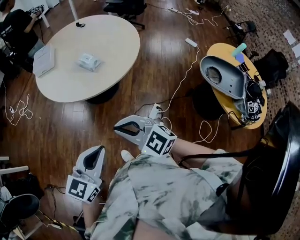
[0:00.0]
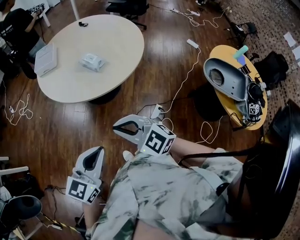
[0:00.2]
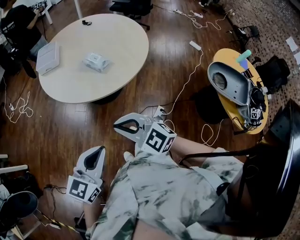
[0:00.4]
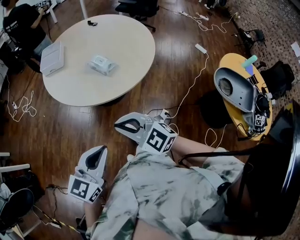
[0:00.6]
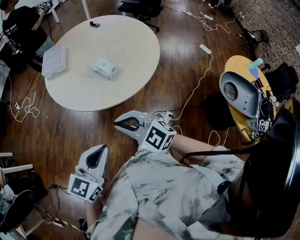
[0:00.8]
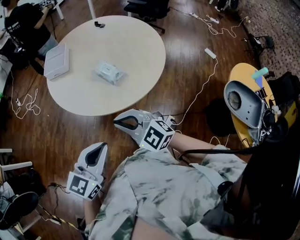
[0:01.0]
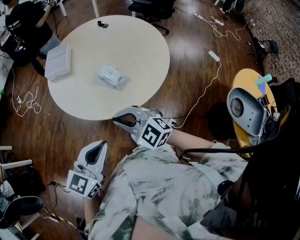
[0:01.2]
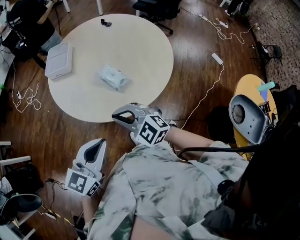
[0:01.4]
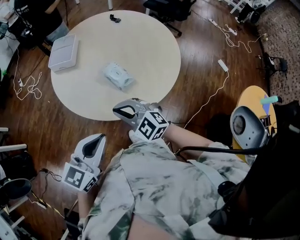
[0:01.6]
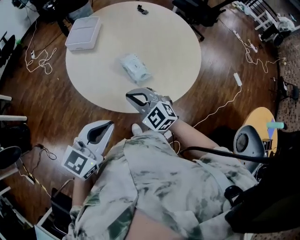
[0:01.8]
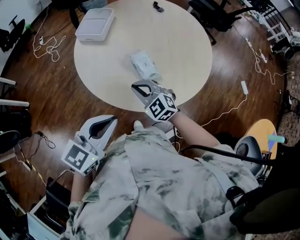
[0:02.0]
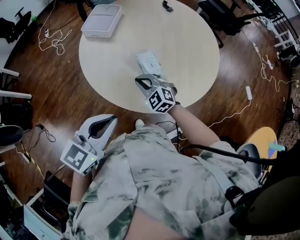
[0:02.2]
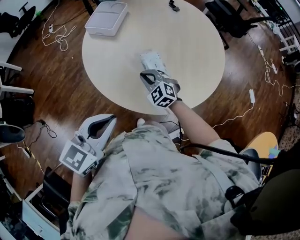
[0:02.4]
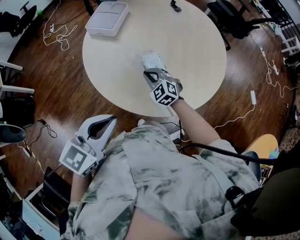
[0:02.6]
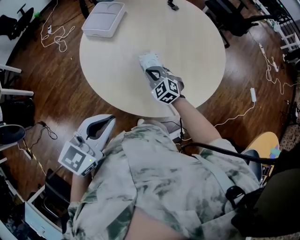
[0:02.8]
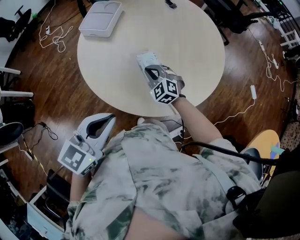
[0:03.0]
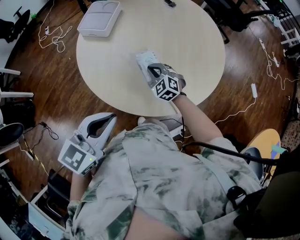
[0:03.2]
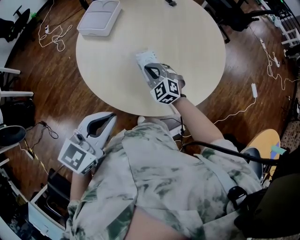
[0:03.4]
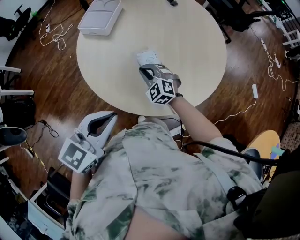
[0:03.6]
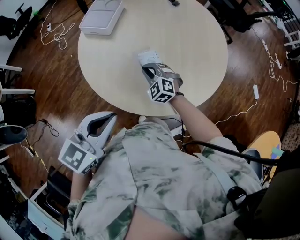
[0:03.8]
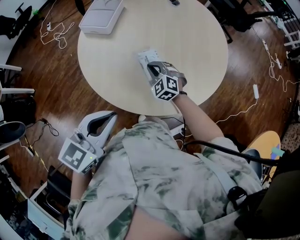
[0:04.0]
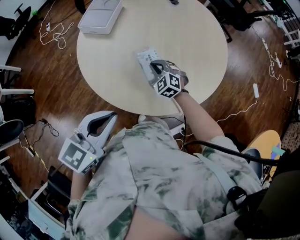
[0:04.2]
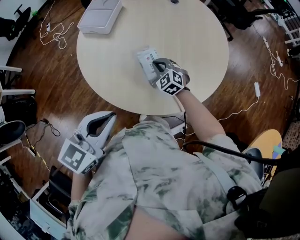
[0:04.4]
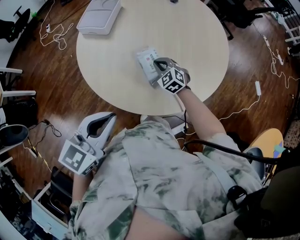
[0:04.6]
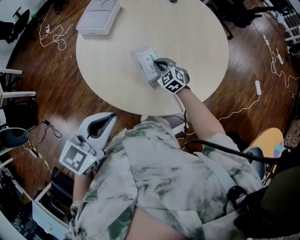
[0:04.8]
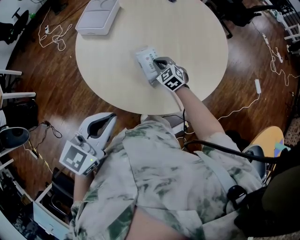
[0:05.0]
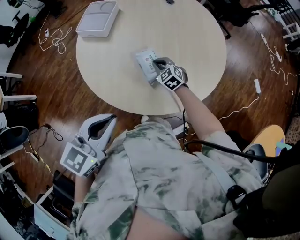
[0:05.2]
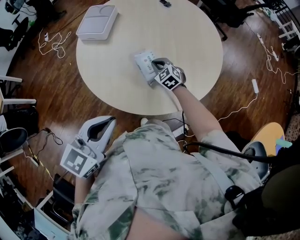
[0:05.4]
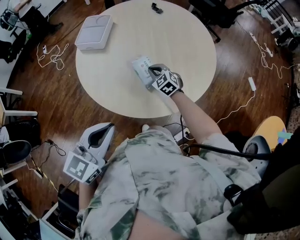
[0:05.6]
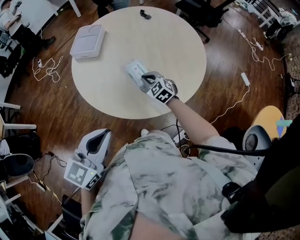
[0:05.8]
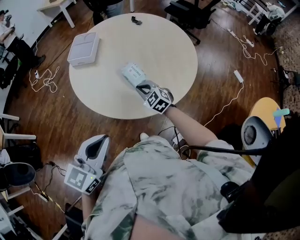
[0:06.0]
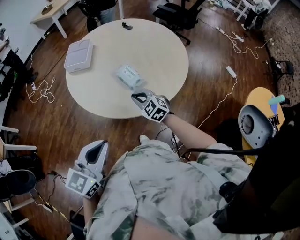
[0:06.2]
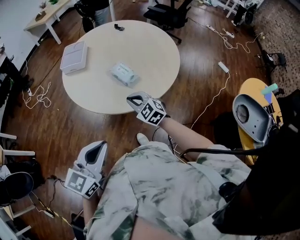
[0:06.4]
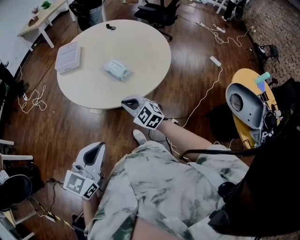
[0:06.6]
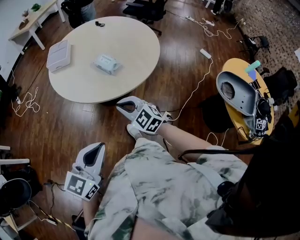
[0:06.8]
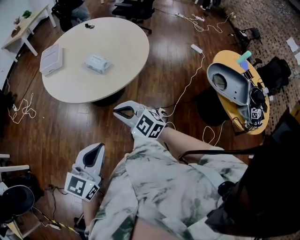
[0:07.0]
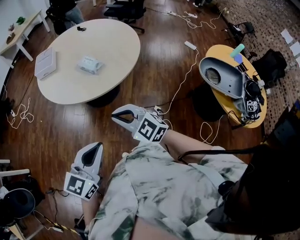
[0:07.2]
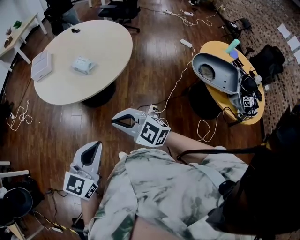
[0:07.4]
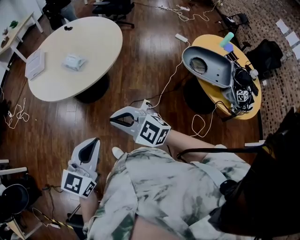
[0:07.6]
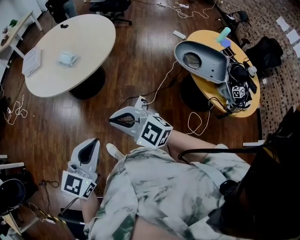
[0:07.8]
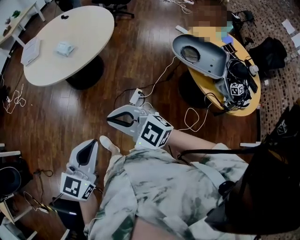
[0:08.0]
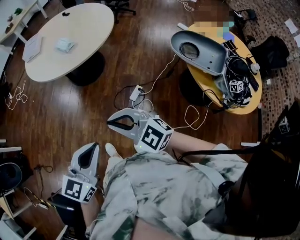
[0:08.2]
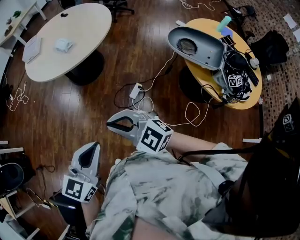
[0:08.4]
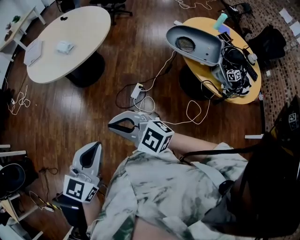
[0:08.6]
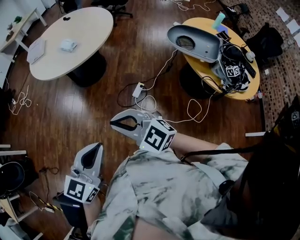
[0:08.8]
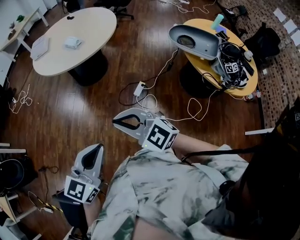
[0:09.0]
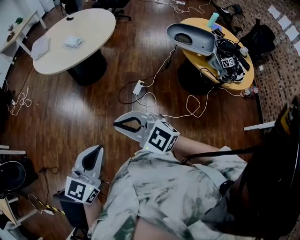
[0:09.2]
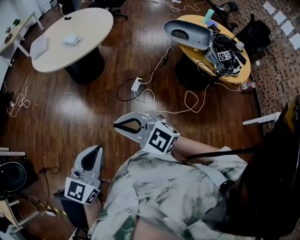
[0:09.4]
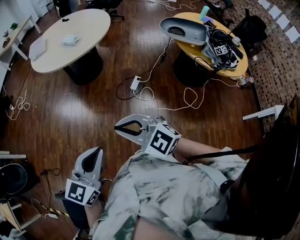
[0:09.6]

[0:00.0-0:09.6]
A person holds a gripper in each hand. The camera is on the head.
0:00.0 to 0:01.6: Both grippers move forward, some 30 cm.
0:01.6 to 0:03.2: The right gripper travels forward and downward by approximately 30 cm; the left gripper is displaced forward by about 10 cm.
0:03.2 to 0:04.8: There are only small adjustments of the grippers.
0:04.8 to 0:06.4: The right gripper travels backward and upward by approximately 30 cm; the left gripper heads backward, covering about 20 cm.
0:06.4 to 0:08.0: The two grippers go about 40 cm backward and to the right.
0:08.0 to 0:09.6: The two grippers go about 30 cm backward and to the left.

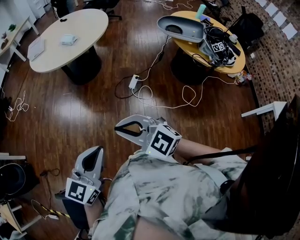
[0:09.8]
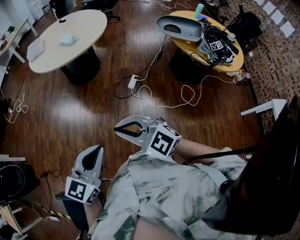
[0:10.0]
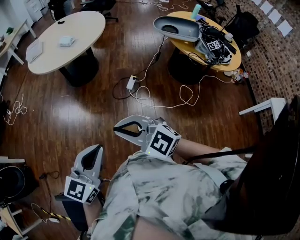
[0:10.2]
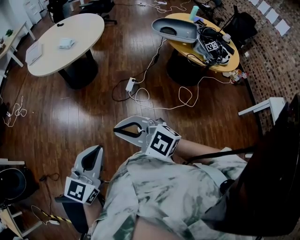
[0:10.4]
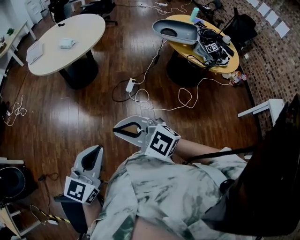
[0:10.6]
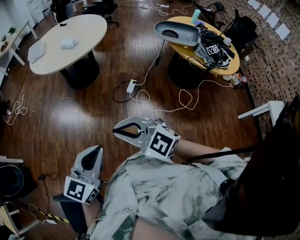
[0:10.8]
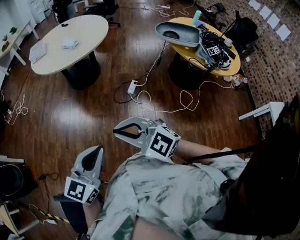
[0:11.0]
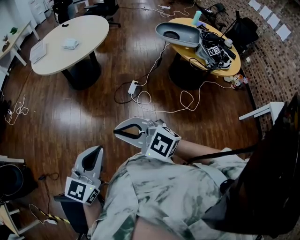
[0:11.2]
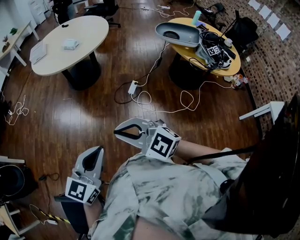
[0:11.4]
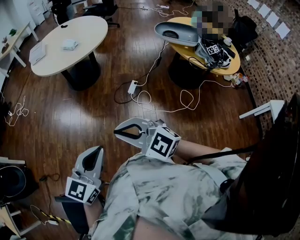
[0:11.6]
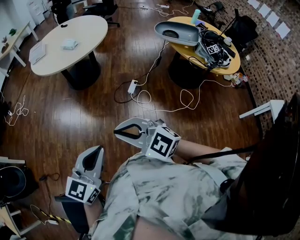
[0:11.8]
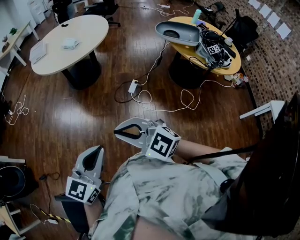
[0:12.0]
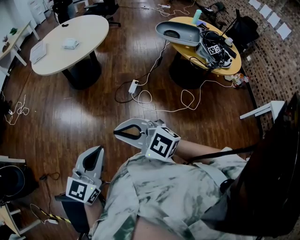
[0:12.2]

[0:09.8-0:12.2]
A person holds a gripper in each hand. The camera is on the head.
0:09.8 to 0:11.0: The grippers move only a little.
0:11.0 to 0:12.2: Both grippers stay put.

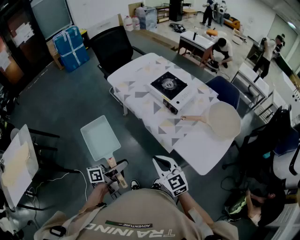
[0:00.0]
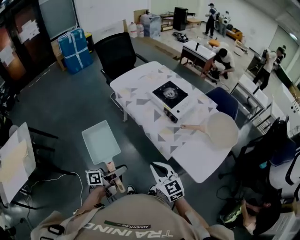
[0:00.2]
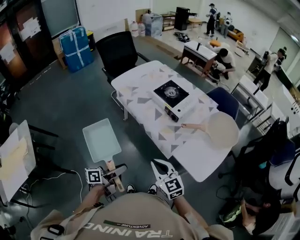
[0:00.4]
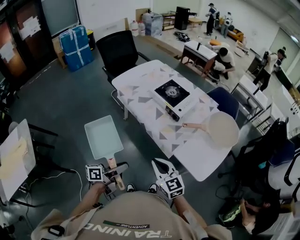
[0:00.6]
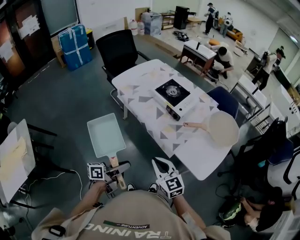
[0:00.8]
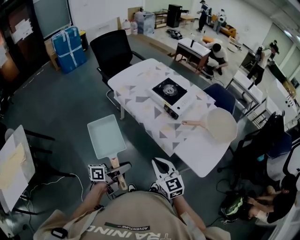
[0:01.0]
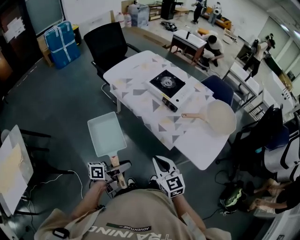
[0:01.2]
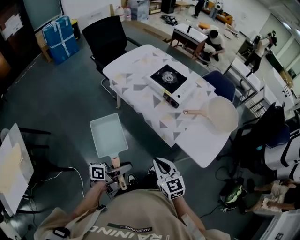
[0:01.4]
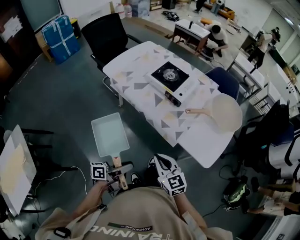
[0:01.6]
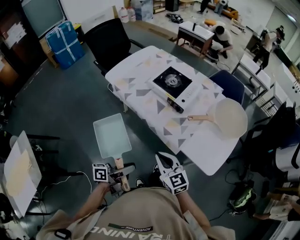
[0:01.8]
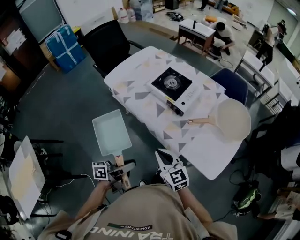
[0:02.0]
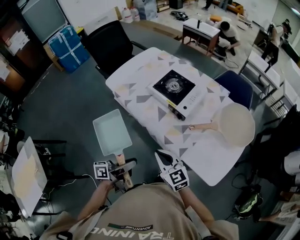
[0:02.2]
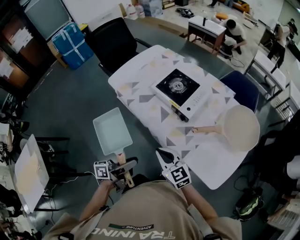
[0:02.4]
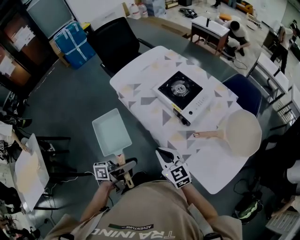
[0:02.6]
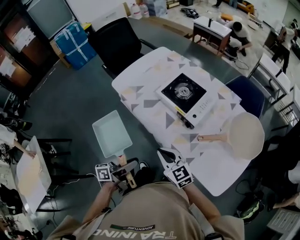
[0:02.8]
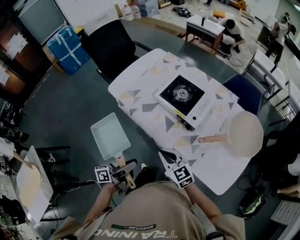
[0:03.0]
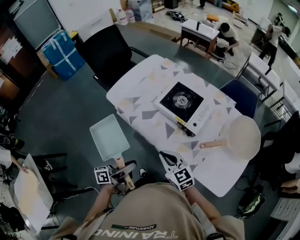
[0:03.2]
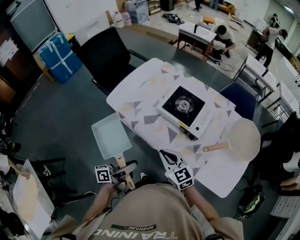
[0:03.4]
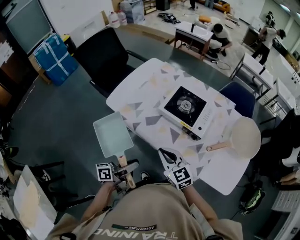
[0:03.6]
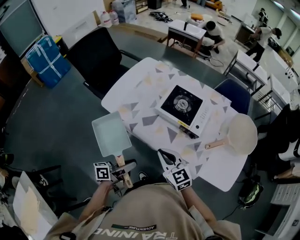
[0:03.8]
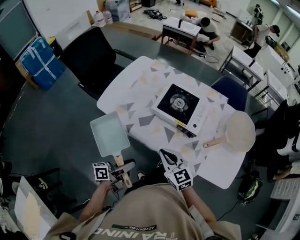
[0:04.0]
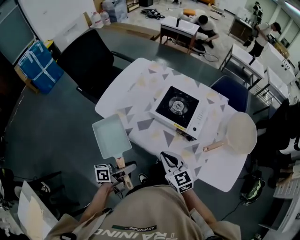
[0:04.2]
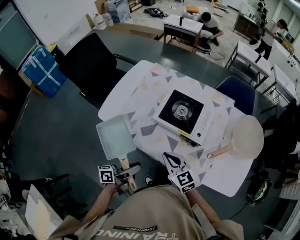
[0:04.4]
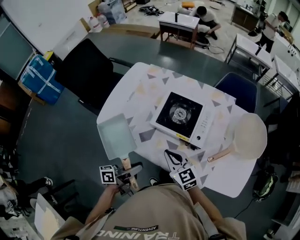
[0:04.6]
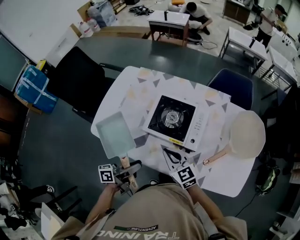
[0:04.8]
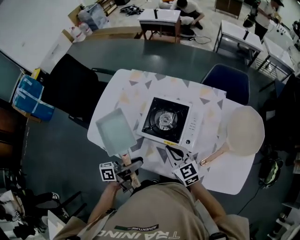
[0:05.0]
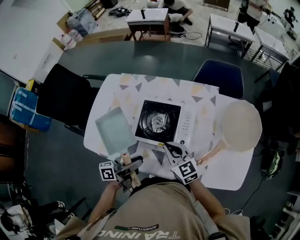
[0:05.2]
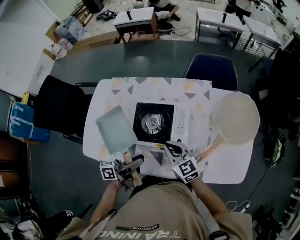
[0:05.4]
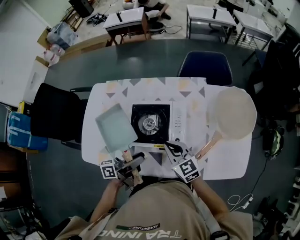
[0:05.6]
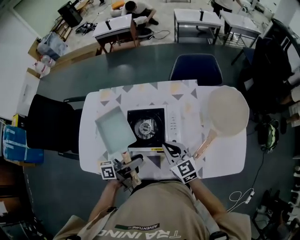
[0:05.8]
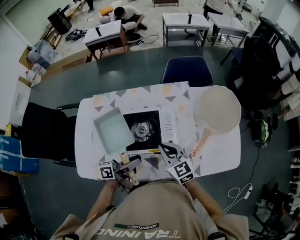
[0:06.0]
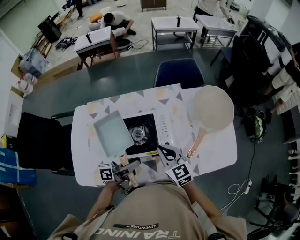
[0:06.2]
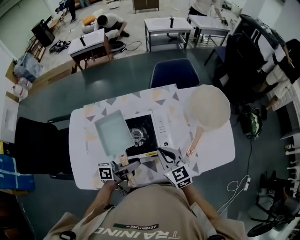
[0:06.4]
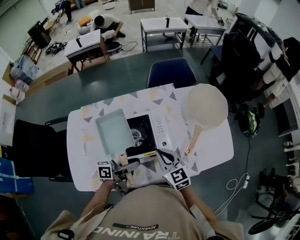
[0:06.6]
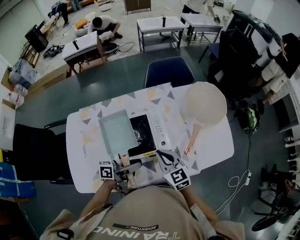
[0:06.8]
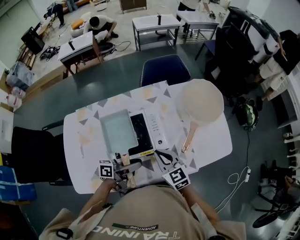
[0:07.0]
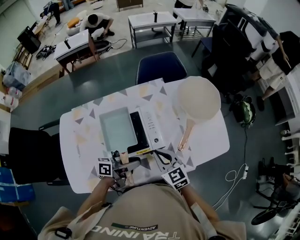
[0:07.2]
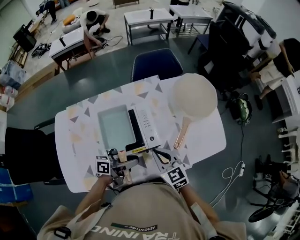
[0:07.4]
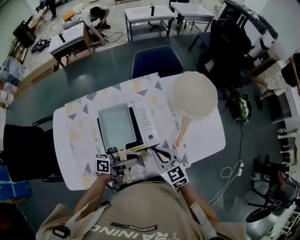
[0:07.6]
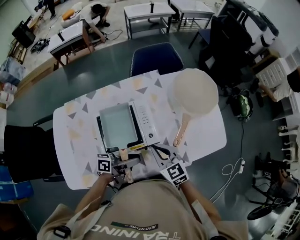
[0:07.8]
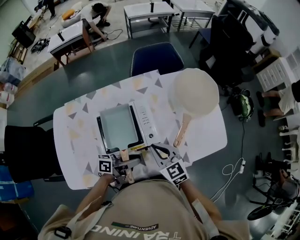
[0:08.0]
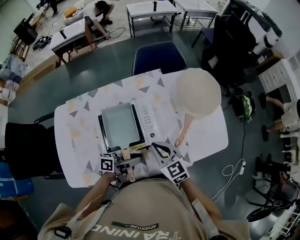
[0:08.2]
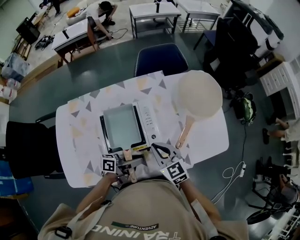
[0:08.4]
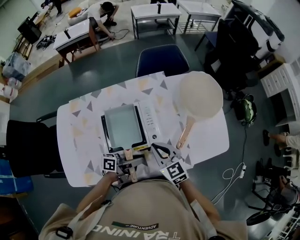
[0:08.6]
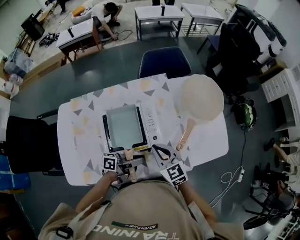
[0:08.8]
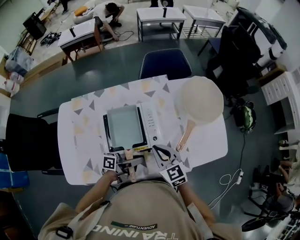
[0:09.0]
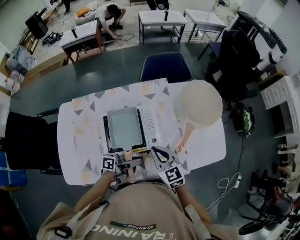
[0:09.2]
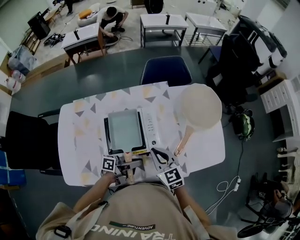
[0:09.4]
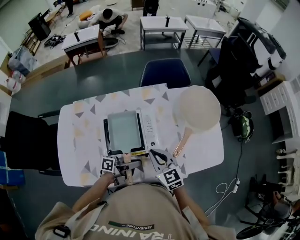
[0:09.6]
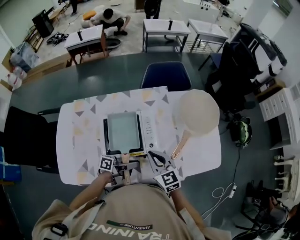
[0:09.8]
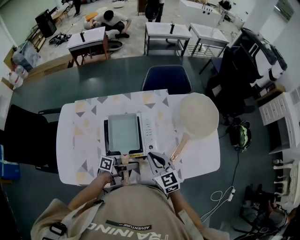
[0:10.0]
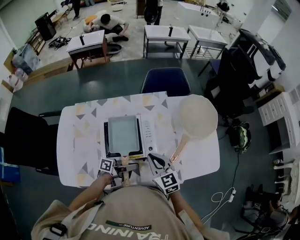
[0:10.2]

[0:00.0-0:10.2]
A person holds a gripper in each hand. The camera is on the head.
0:00.0 to 0:01.4: The right gripper shifts by roughly 5 cm. The left gripper changes place by about 5 cm.
0:01.4 to 0:03.0: The two grippers go some 20 cm forward.
0:03.0 to 0:04.4: The grippers both shift forward and to the left by about 15 cm.
0:04.4 to 0:05.8: The left gripper shifts by approximately 25 cm, and rotates roughly 30 degrees. The right gripper moves some 20 cm, and rotates some 30 degrees.
0:05.8 to 0:07.2: The left gripper ends up approximately 5 cm from where it was, and turns by some 30 degrees.
0:07.2 to 0:10.2: There are only small adjustments of the grippers.

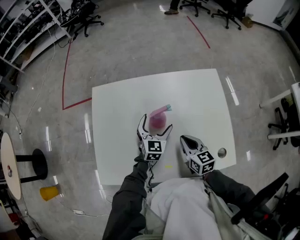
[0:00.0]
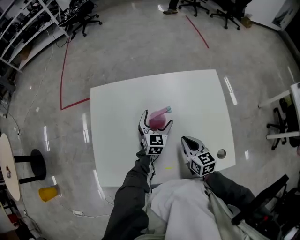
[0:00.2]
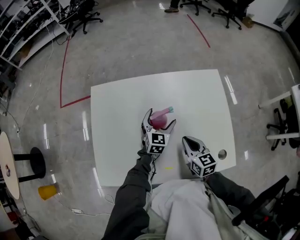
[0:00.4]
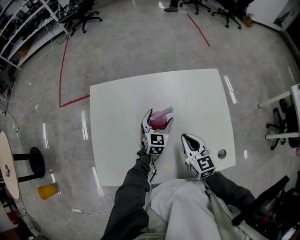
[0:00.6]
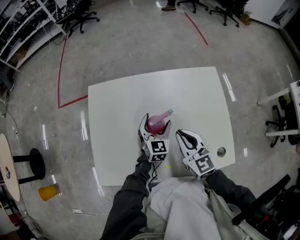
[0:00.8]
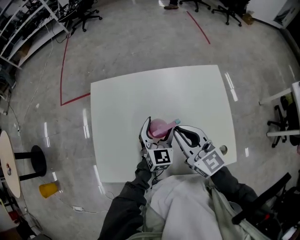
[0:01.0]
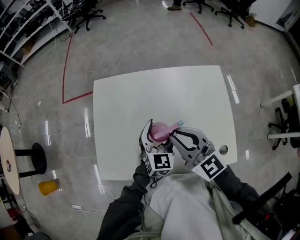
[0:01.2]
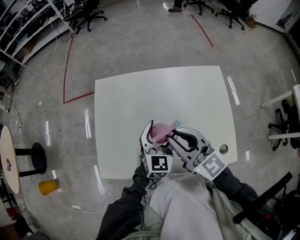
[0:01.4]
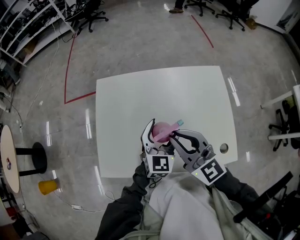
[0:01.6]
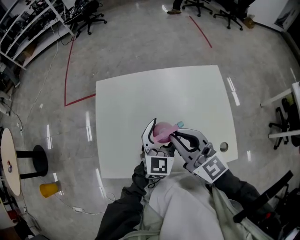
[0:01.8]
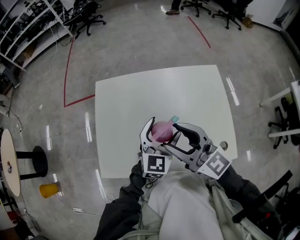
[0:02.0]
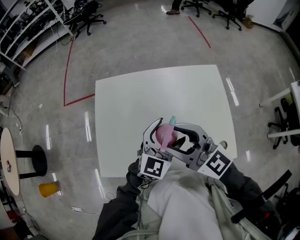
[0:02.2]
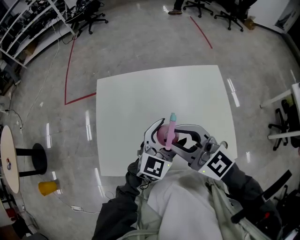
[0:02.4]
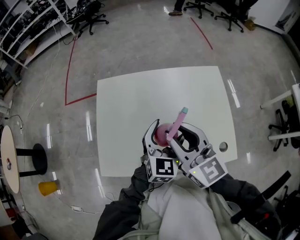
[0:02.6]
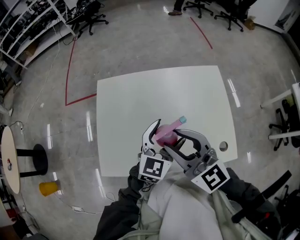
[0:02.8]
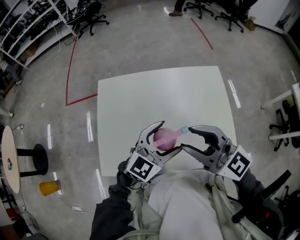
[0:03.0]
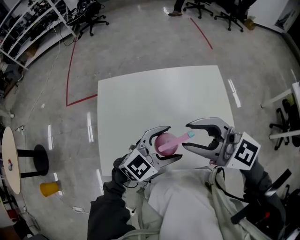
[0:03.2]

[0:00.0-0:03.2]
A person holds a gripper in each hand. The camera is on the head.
0:00.0 to 0:01.6: The left gripper heads upward and backward, covering roughly 15 cm, while the right gripper heads upward and to the left, covering about 25 cm, and turns by approximately 40 degrees.
0:01.6 to 0:03.2: The left gripper ends up approximately 10 cm from where it was, and rotates about 50 degrees. Meanwhile the right gripper moves upward, roughly 10 cm, changes its angle by approximately 20 degrees, and opens its fingers.
